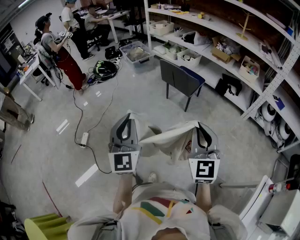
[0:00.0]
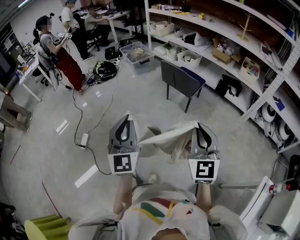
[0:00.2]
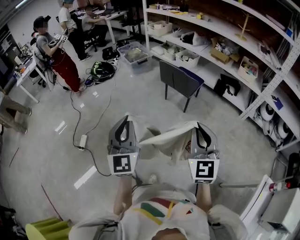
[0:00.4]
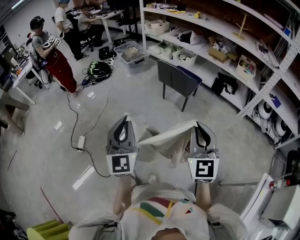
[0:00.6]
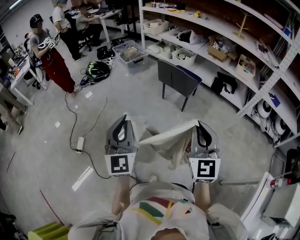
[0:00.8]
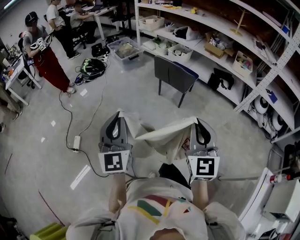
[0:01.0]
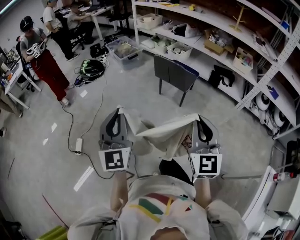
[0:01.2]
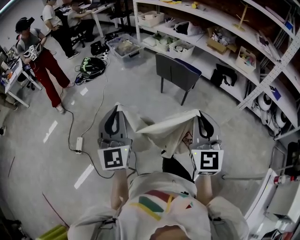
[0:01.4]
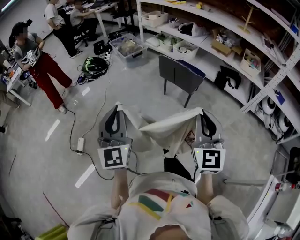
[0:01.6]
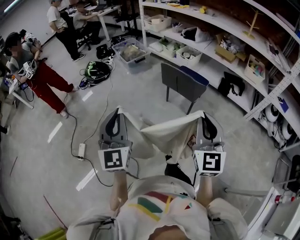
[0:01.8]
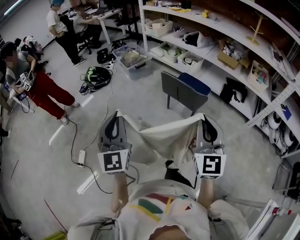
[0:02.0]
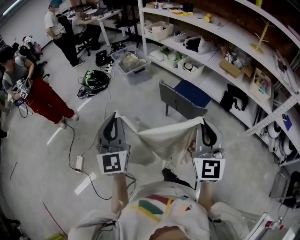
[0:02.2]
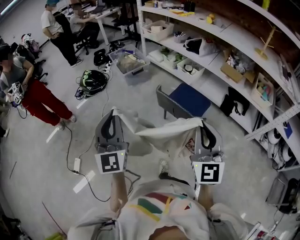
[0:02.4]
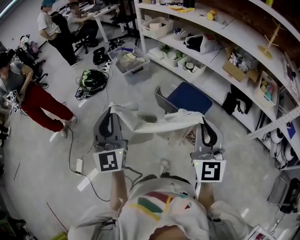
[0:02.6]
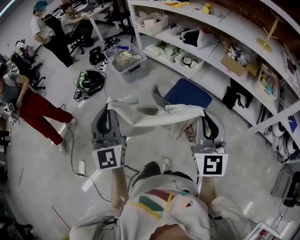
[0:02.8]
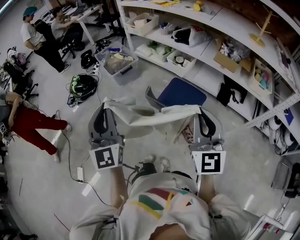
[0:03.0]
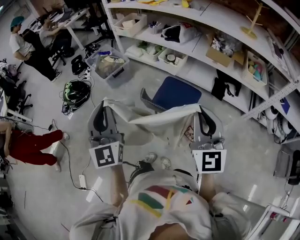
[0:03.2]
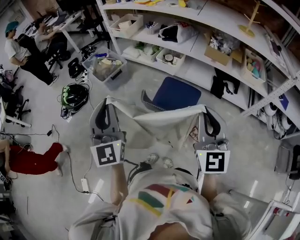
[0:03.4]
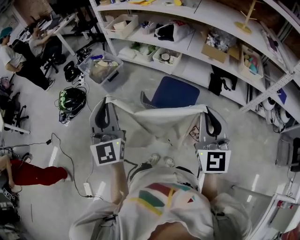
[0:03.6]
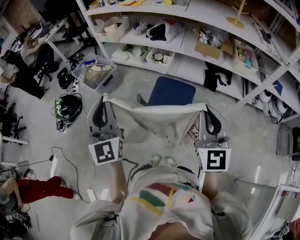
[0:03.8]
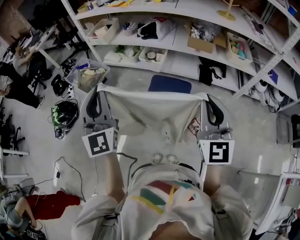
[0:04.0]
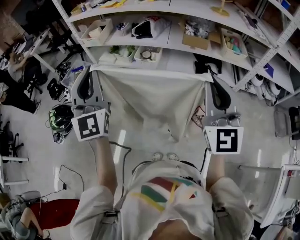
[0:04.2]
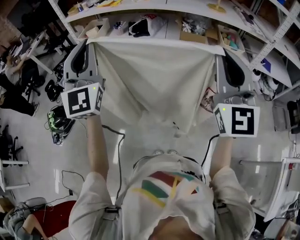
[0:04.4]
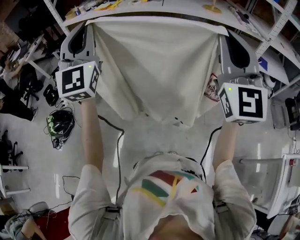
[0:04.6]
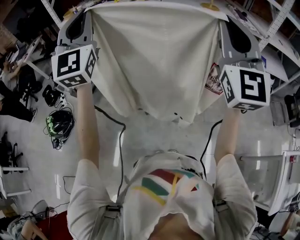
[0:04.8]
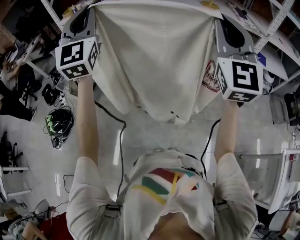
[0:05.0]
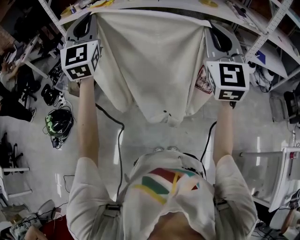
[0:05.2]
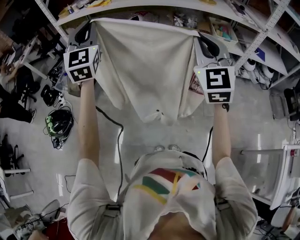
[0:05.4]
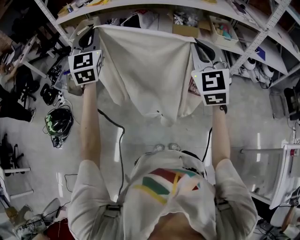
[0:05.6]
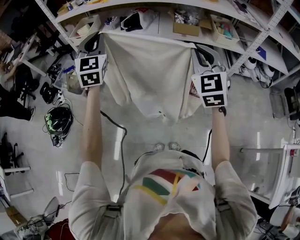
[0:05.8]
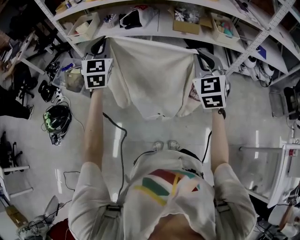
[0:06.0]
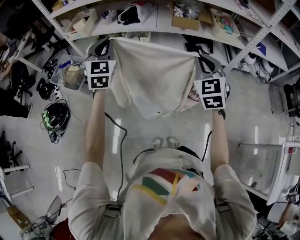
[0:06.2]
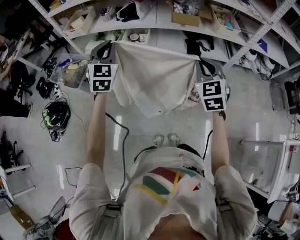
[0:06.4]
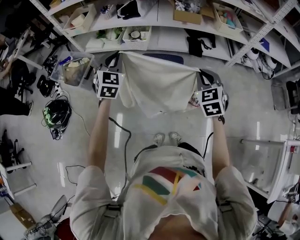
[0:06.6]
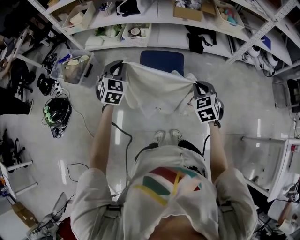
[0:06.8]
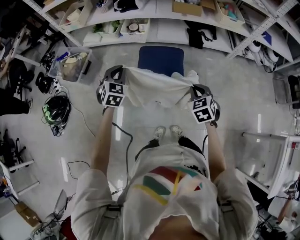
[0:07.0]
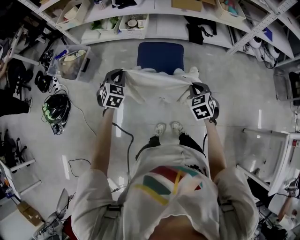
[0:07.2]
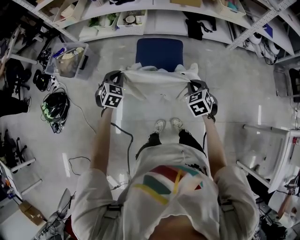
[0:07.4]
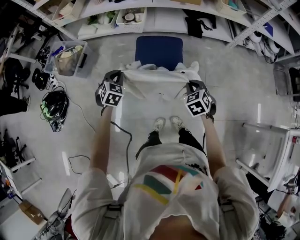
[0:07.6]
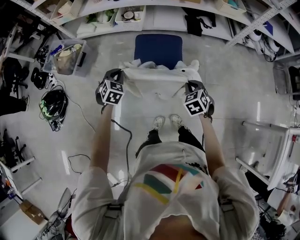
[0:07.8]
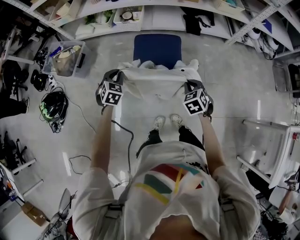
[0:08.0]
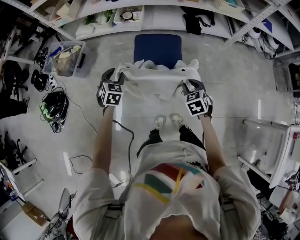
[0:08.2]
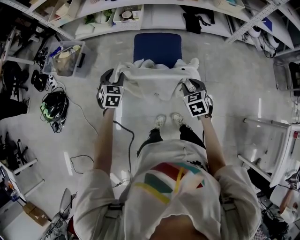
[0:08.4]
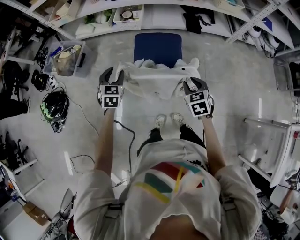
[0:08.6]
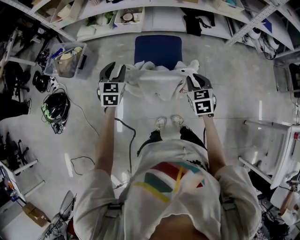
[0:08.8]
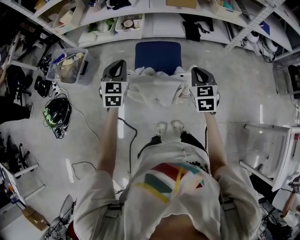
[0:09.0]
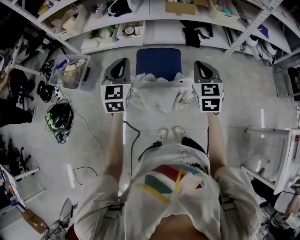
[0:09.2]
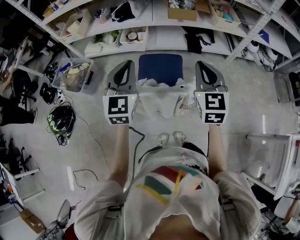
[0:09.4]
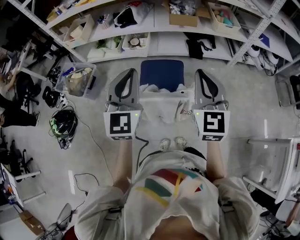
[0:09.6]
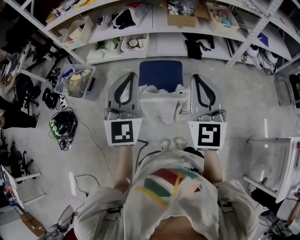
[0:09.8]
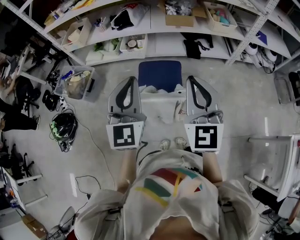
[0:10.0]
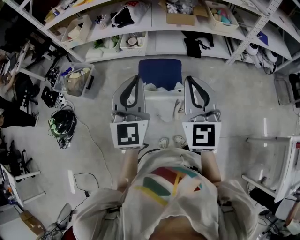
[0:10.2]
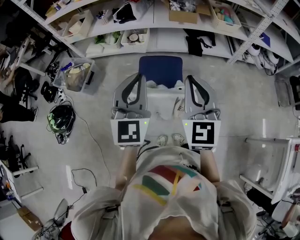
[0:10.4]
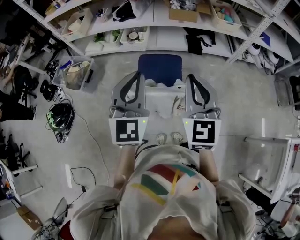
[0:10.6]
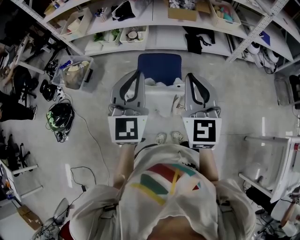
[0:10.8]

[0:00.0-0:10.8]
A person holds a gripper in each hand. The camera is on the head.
0:00.0 to 0:01.6: The two grippers go about 15 cm forward and to the left.
0:01.6 to 0:03.0: Both grippers are carried forward, roughly 40 cm.
0:03.0 to 0:04.6: The left gripper shifts by some 30 cm, and changes its angle by roughly 40 degrees; the right gripper shifts about 20 cm upward, and changes its angle by about 30 degrees.
0:04.6 to 0:06.2: The right gripper moves downward, roughly 25 cm, and tilts its fingers some 40 degrees downward; the left gripper is displaced downward and forward by approximately 25 cm, and tilts its fingers roughly 30 degrees downward.
0:06.2 to 0:07.8: The two grippers go approximately 30 cm downward. The right gripper angles its fingers downward, by roughly 40 degrees; the left gripper tips its fingers downward by roughly 40 degrees.
0:07.8 to 0:09.2: Both grippers travel together upward, about 20 cm. The right gripper changes its angle by about 30 degrees, and opens, then closes again. The left gripper tilts its fingers about 30 degrees upward, and opens, then closes once more.
0:09.2 to 0:10.8: The left gripper shifts roughly 15 cm upward, backward and to the right. The right gripper goes roughly 15 cm upward and backward.

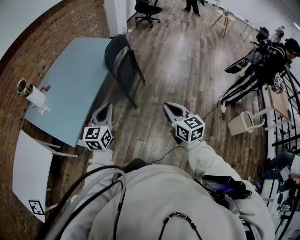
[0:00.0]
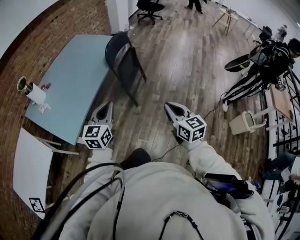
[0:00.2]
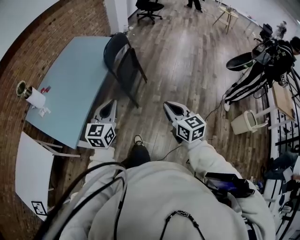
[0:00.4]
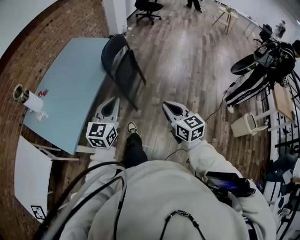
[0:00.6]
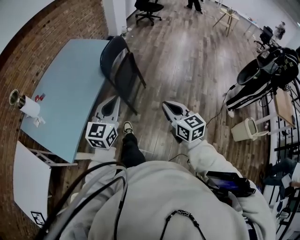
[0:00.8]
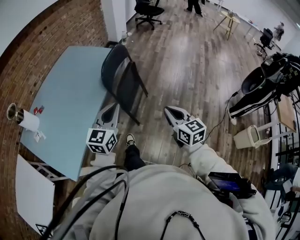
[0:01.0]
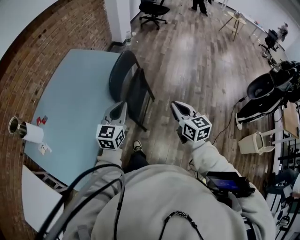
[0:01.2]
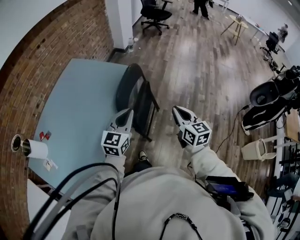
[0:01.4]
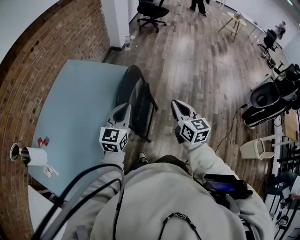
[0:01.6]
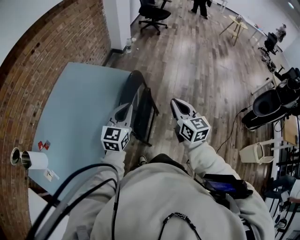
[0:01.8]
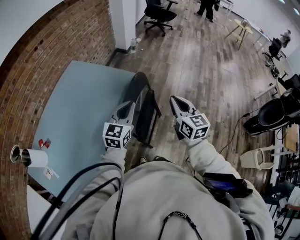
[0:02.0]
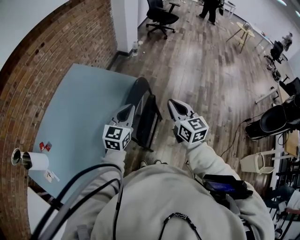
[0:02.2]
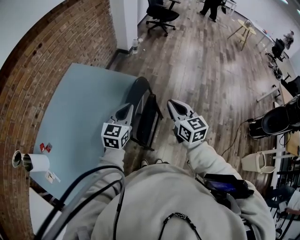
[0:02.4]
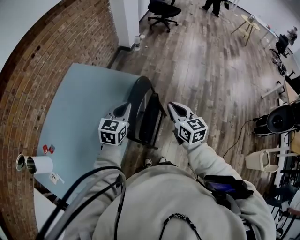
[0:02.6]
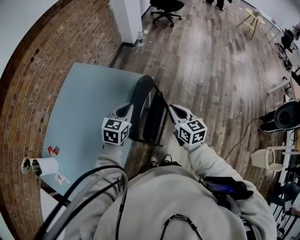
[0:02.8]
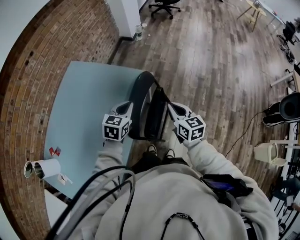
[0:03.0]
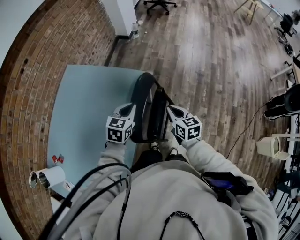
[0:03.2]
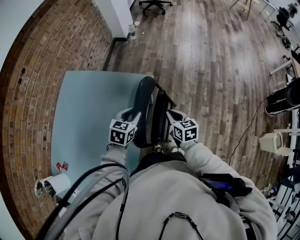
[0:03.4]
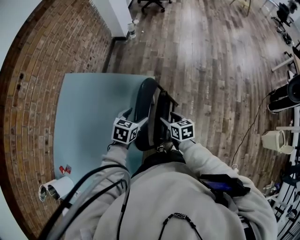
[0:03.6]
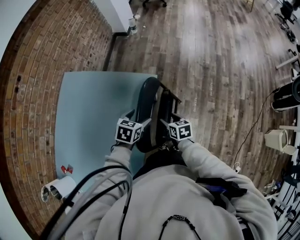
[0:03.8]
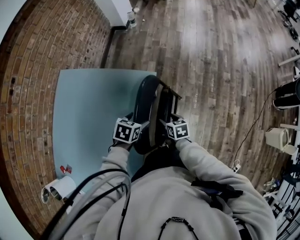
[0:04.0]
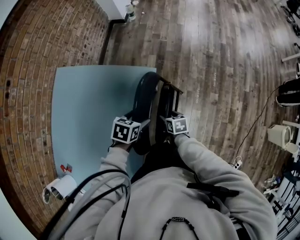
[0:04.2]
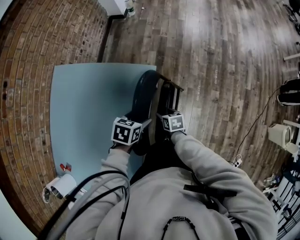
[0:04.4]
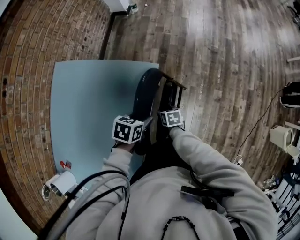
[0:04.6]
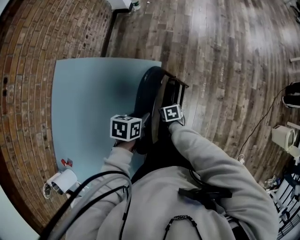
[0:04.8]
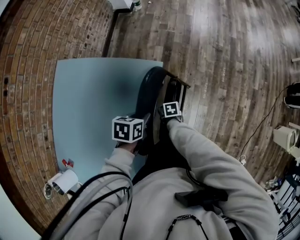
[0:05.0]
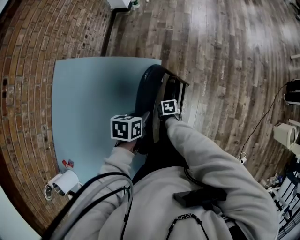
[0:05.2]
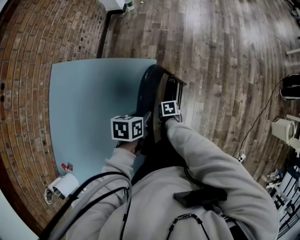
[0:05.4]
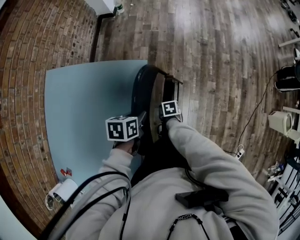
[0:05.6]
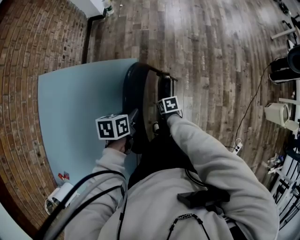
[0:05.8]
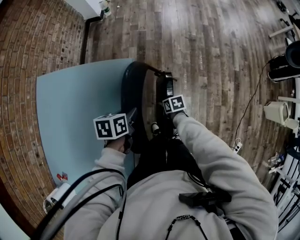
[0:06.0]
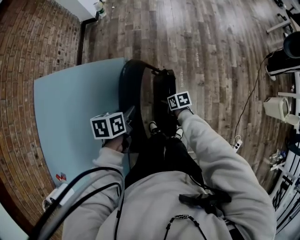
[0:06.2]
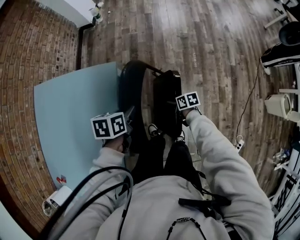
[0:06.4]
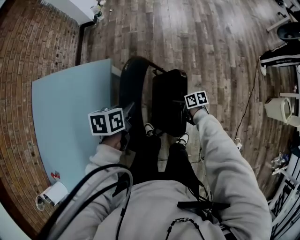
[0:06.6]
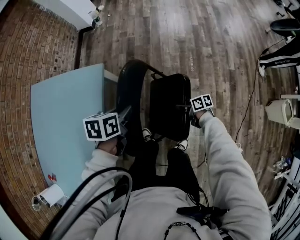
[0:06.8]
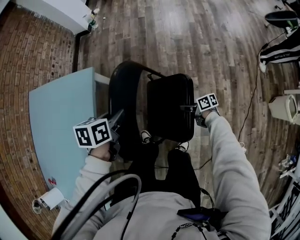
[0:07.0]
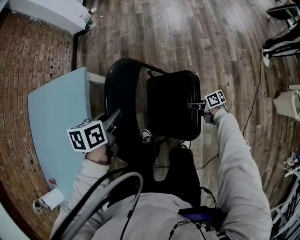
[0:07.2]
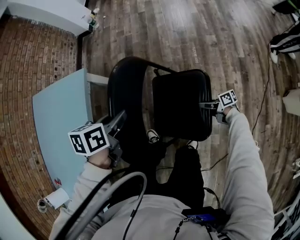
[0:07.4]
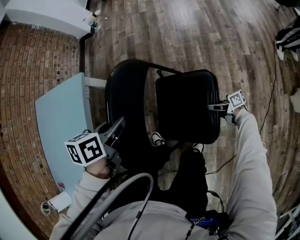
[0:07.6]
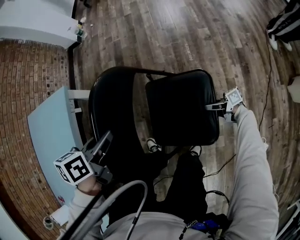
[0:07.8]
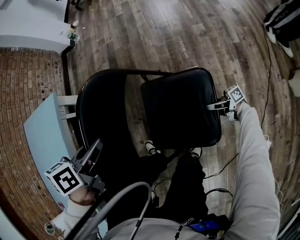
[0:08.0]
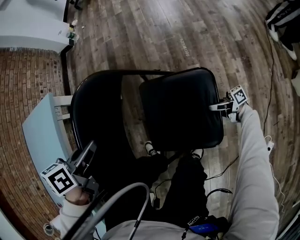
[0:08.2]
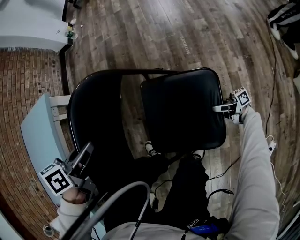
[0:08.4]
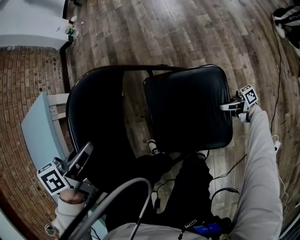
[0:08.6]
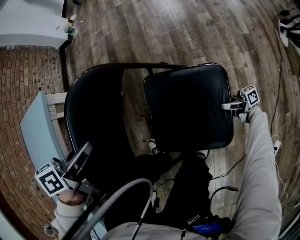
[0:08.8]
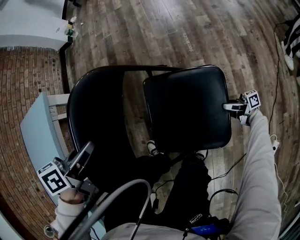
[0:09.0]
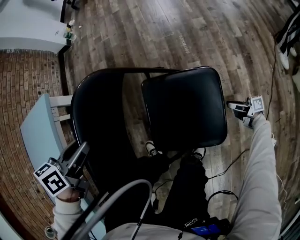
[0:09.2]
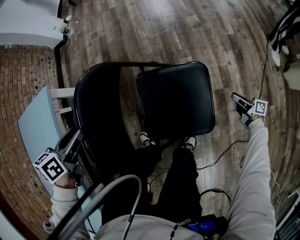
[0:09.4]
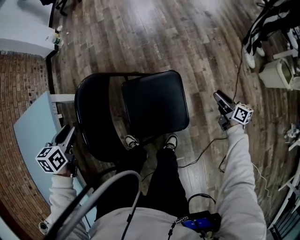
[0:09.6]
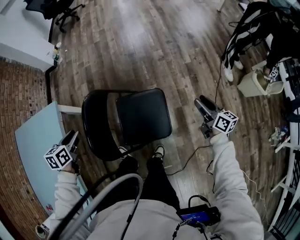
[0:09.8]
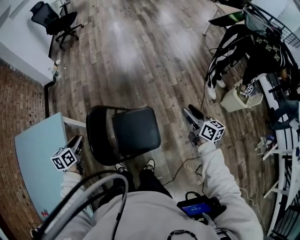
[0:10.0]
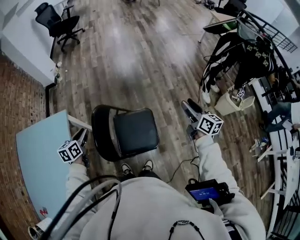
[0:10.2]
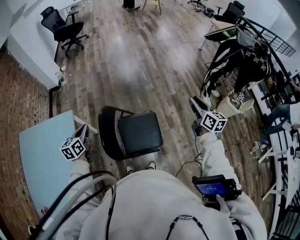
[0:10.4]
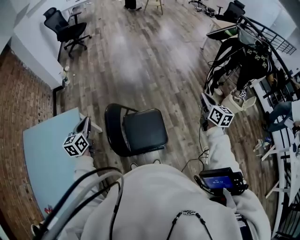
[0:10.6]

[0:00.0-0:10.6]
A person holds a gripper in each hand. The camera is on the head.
0:00.0 to 0:01.6: The two grippers travel together, forward, some 50 cm.
0:01.6 to 0:03.0: The grippers both shift forward and downward by approximately 20 cm. The left gripper changes its angle by some 30 degrees.
0:03.0 to 0:04.6: The left gripper heads downward, covering roughly 15 cm, turns by some 40 degrees, and opens up; the right gripper travels downward by about 35 cm, angles its fingers downward, by approximately 40 degrees, and opens up.
0:04.6 to 0:06.0: The left gripper closes up; the right gripper travels to the right by roughly 10 cm, and closes.
0:06.0 to 0:07.6: The left gripper travels to the right by roughly 25 cm. Meanwhile the right gripper goes some 50 cm to the right, backward and downward, and points its fingers about 50 degrees further upward.
0:07.6 to 0:09.0: The left gripper goes roughly 10 cm downward. Meanwhile the right gripper goes some 10 cm downward.
0:09.0 to 0:10.6: The left gripper is displaced upward by roughly 35 cm, and turns by approximately 40 degrees, while the right gripper travels upward by some 70 cm, changes its angle by about 90 degrees, and closes its fingers.

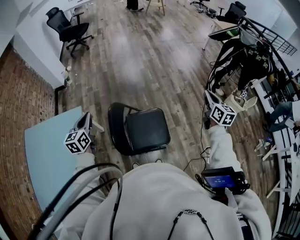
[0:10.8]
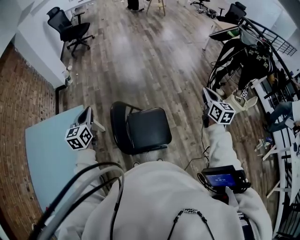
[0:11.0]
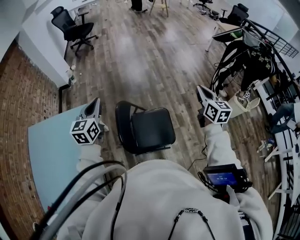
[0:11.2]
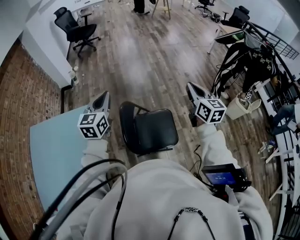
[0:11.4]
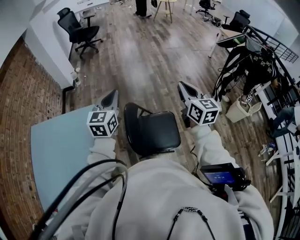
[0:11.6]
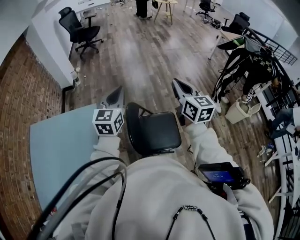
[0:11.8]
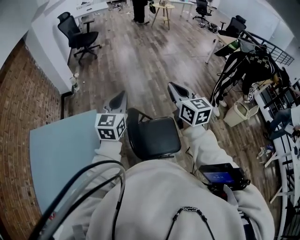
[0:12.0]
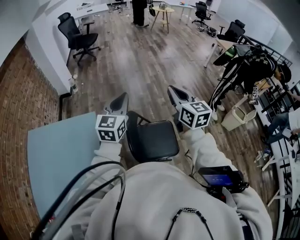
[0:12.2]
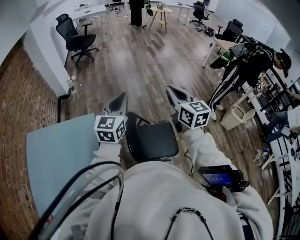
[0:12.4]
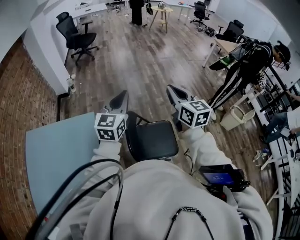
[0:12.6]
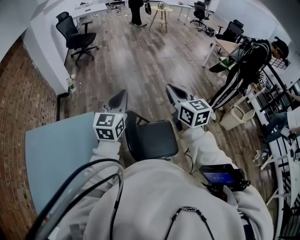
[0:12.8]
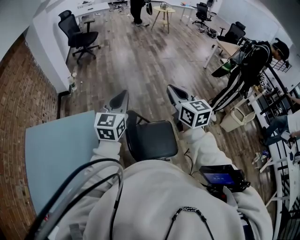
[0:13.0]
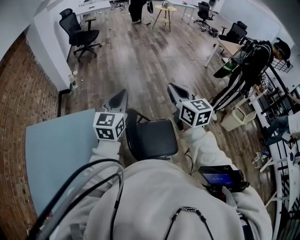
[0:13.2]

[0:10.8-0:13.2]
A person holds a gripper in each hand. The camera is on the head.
0:10.8 to 0:12.0: The left gripper moves upward and to the right, roughly 15 cm, and swivels about 20 degrees; the right gripper heads to the left, covering some 35 cm, and turns by roughly 20 degrees.
0:12.0 to 0:13.2: There are only small adjustments of the grippers.
